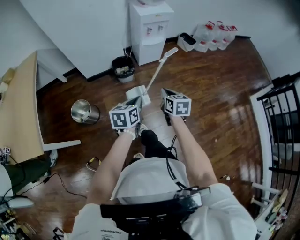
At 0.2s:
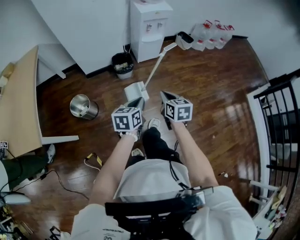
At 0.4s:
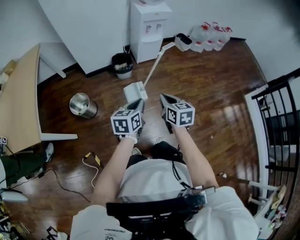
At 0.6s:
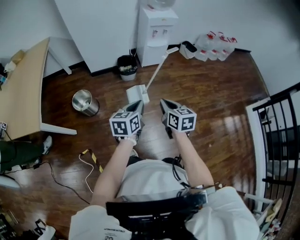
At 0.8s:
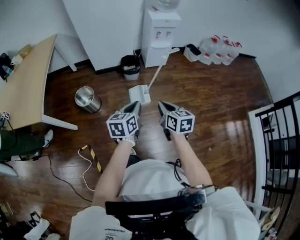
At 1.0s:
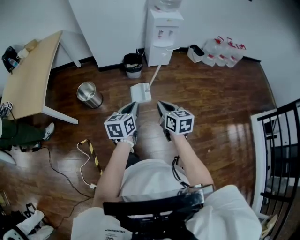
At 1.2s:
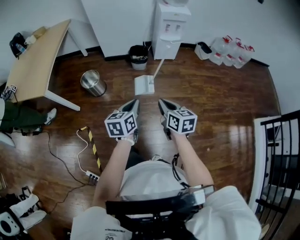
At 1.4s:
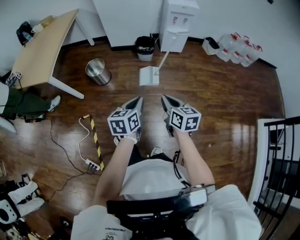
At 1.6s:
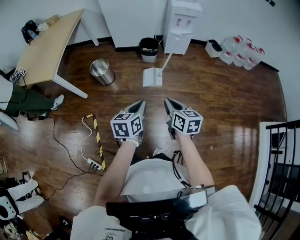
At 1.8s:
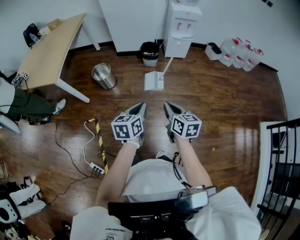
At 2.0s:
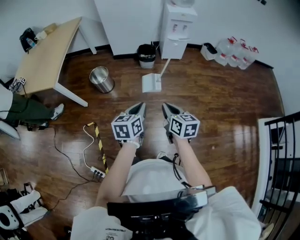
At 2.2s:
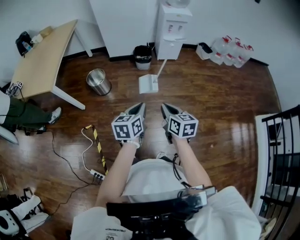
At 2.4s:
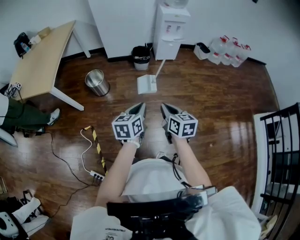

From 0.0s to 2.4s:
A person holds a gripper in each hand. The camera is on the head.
From 0.0s to 1.2s: Both grippers travel together backward, about 25 cm. The left gripper changes its angle by approximately 20 degrees. The right gripper turns by roughly 20 degrees.
From 1.2s to 2.4s: The grippers both shift backward by some 10 cm.

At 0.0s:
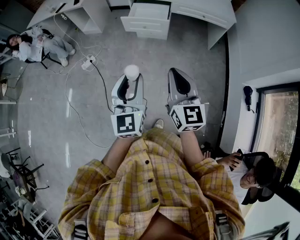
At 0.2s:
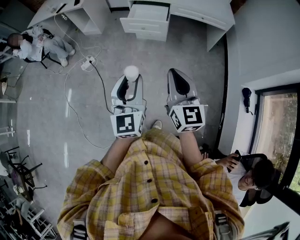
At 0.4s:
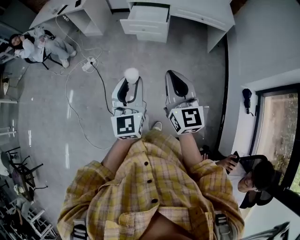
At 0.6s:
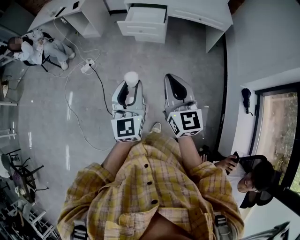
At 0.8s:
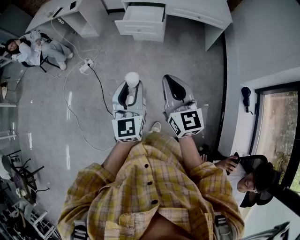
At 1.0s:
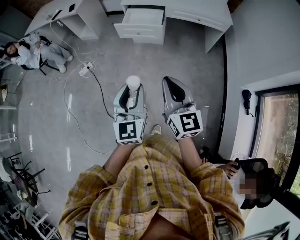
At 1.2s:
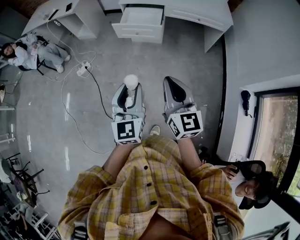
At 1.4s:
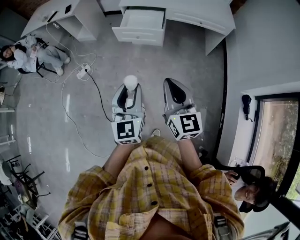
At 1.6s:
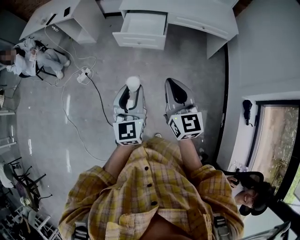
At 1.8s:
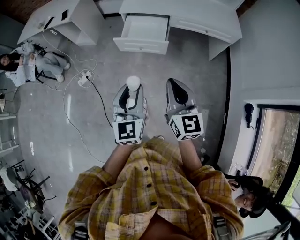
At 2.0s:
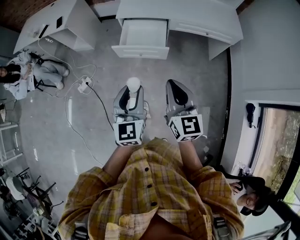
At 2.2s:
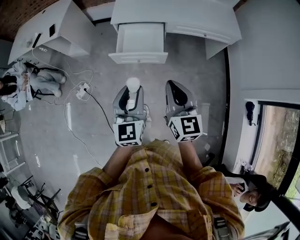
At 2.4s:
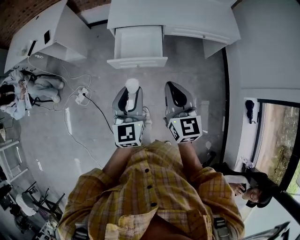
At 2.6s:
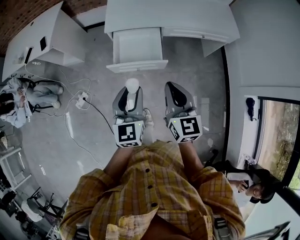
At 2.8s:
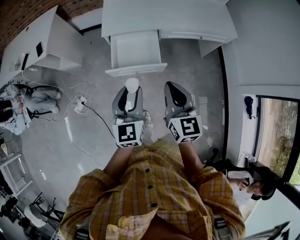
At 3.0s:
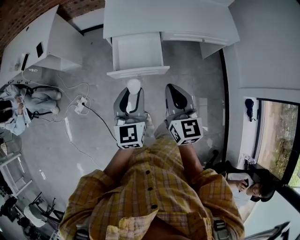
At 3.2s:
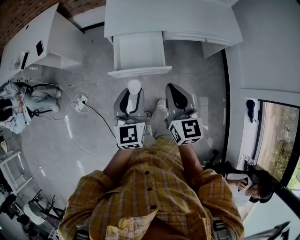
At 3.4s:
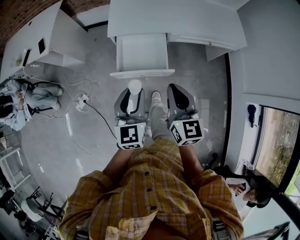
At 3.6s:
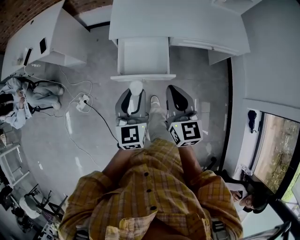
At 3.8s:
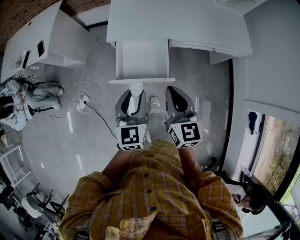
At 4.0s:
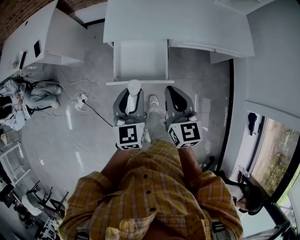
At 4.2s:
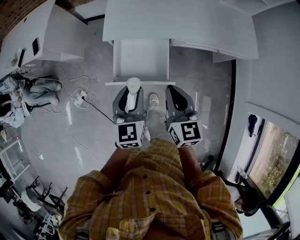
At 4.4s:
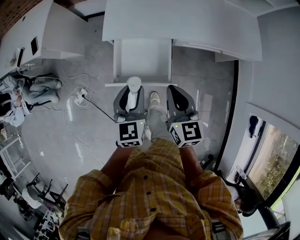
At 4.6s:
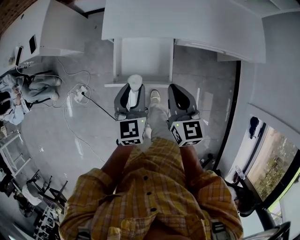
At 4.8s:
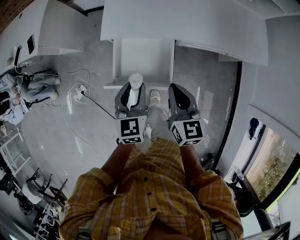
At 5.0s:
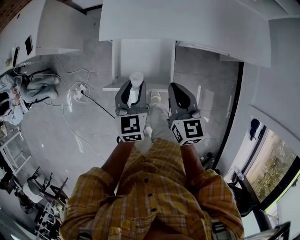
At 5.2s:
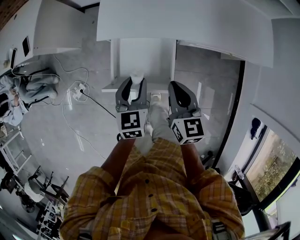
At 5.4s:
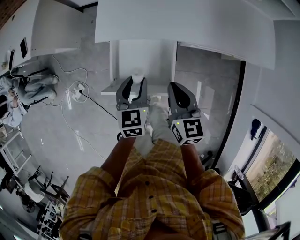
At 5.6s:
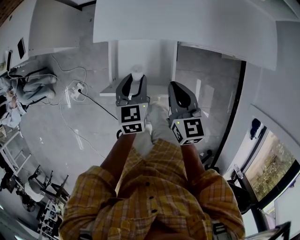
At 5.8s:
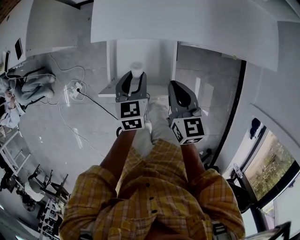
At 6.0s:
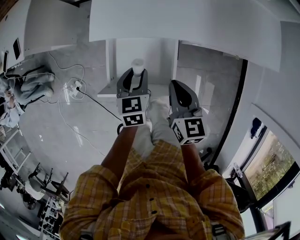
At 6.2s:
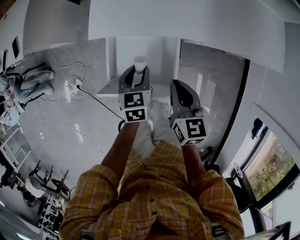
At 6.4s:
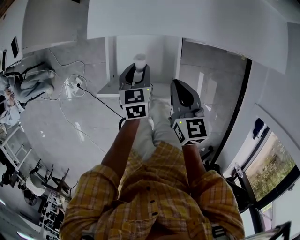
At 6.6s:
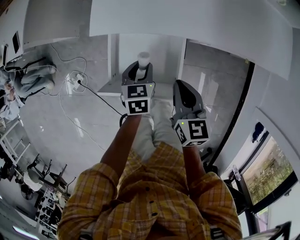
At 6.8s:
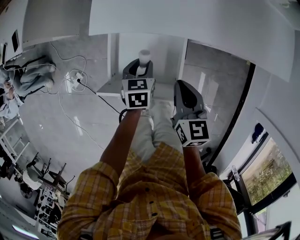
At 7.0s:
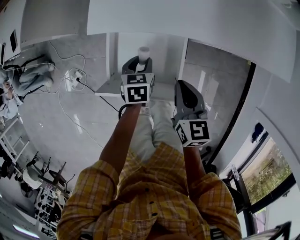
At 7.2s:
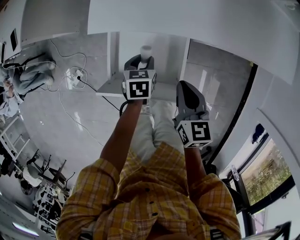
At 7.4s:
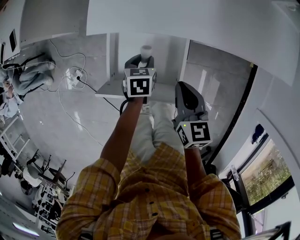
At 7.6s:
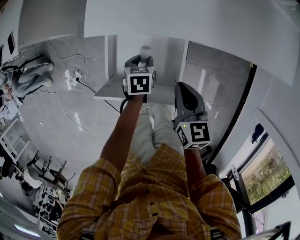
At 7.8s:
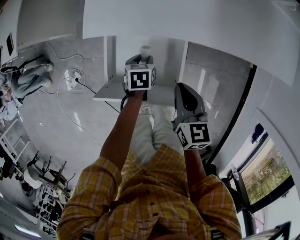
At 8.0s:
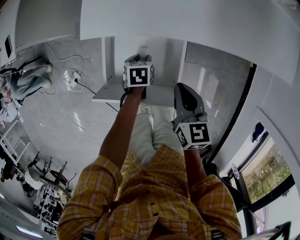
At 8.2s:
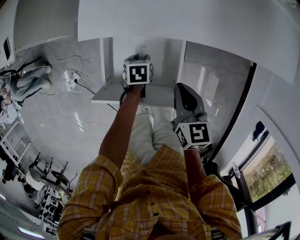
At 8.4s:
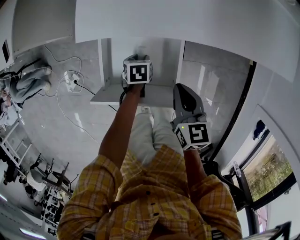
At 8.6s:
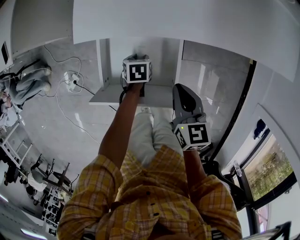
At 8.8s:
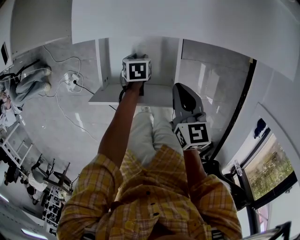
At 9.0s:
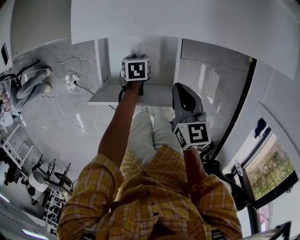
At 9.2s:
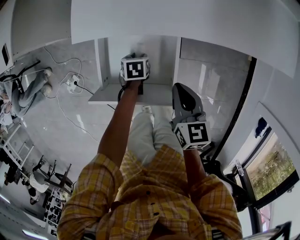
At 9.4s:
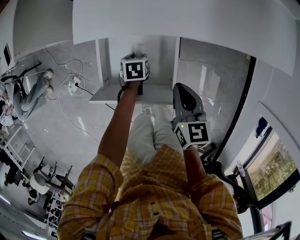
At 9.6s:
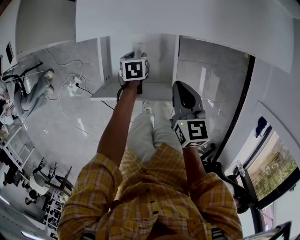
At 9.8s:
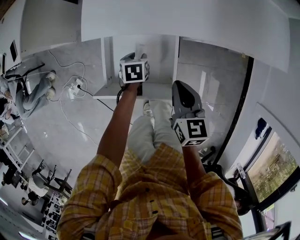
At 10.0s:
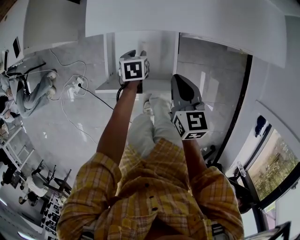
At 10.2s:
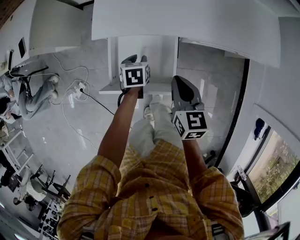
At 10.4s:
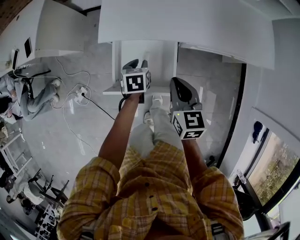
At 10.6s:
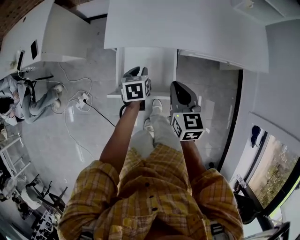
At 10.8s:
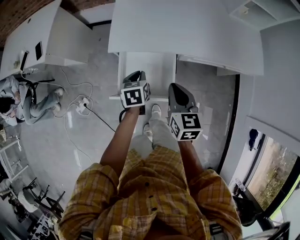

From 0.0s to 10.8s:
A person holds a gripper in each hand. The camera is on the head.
From 0.0s to 1.6s: Both grippers travel together forward, roughly 15 cm.
From 1.6s to 3.0s: Both grippers move forward, roughly 30 cm.
From 3.0s to 4.6s: Both grippers travel together forward and downward, some 20 cm.
From 4.6s to 6.2s: Both grippers move downward and forward, roughly 15 cm.
From 6.2s to 7.8s: The right gripper goes some 5 cm downward. Meanwhile the left gripper moves downward, about 15 cm, and swivels roughly 20 degrees.
From 7.8s to 9.2s: The left gripper travels downward by some 5 cm.
From 9.2s to 10.8s: The right gripper heads upward, covering approximately 15 cm, while the left gripper shifts about 25 cm upward, changes its angle by roughly 20 degrees, and closes.

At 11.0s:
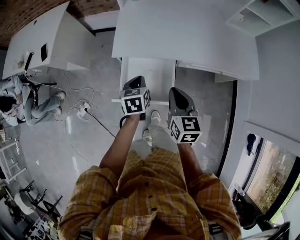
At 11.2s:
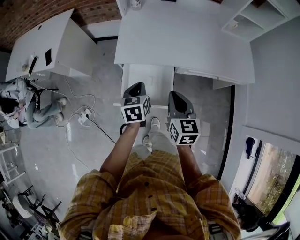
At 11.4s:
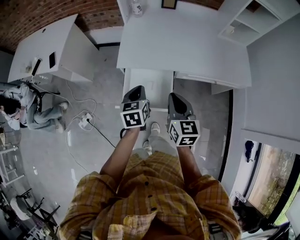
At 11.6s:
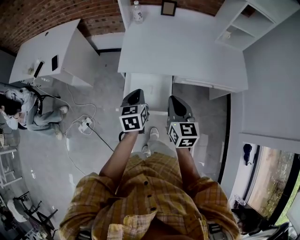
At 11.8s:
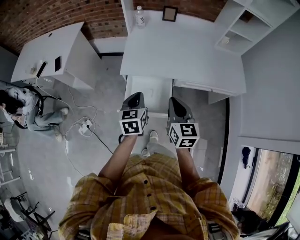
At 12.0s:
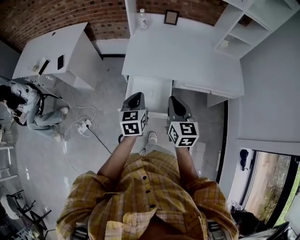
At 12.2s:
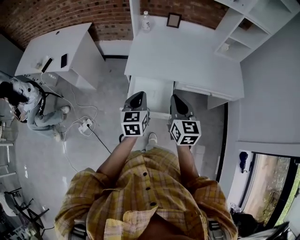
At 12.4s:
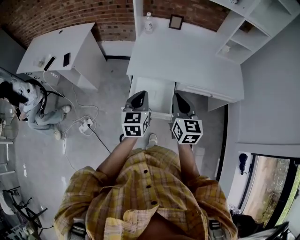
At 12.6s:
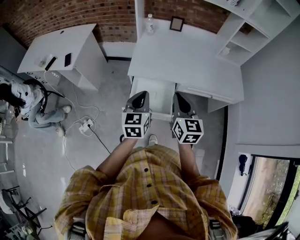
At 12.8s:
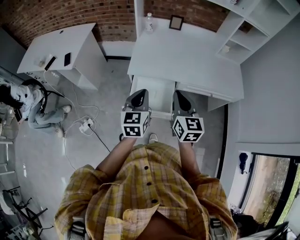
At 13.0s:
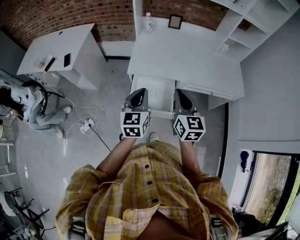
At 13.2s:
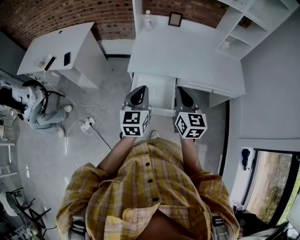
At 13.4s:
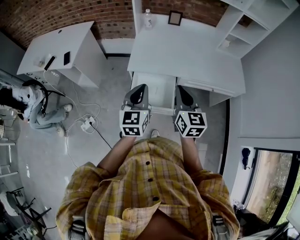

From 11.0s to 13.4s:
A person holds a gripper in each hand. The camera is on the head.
From 11.0s to 12.2s: Both grippers move upward and backward, some 15 cm. The left gripper rotates roughly 20 degrees.
From 12.2s to 13.4s: The left gripper travels upward by about 5 cm.

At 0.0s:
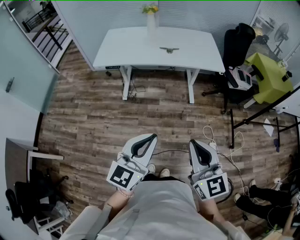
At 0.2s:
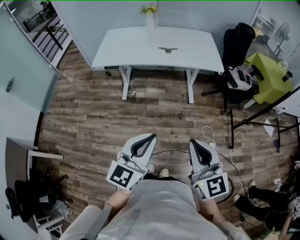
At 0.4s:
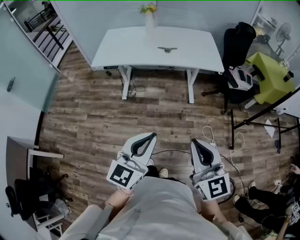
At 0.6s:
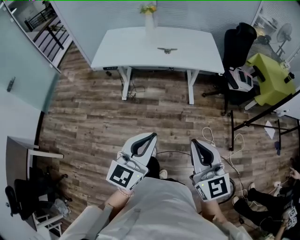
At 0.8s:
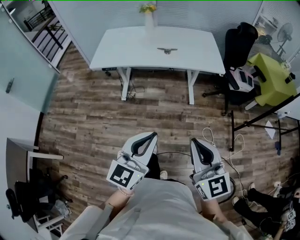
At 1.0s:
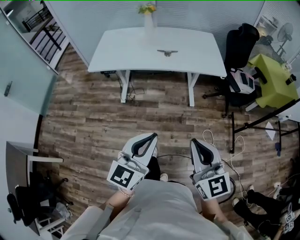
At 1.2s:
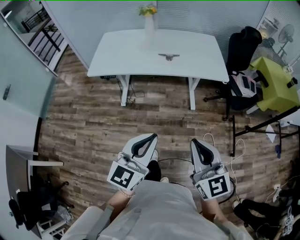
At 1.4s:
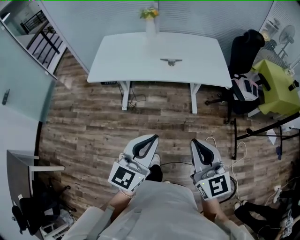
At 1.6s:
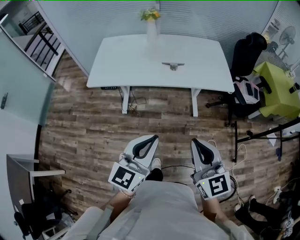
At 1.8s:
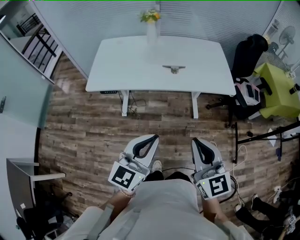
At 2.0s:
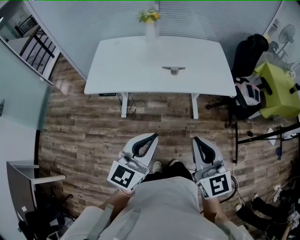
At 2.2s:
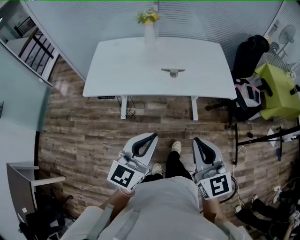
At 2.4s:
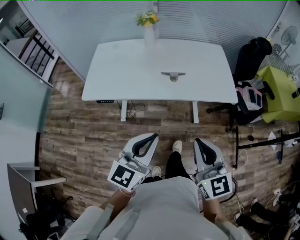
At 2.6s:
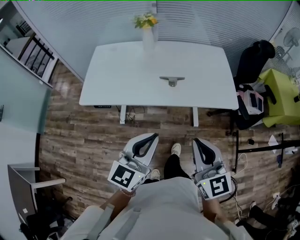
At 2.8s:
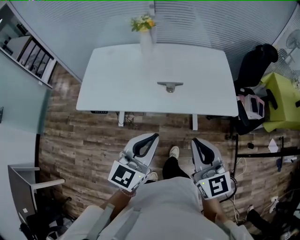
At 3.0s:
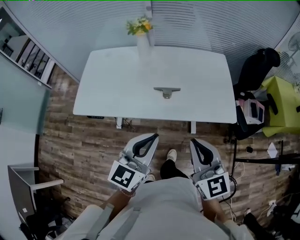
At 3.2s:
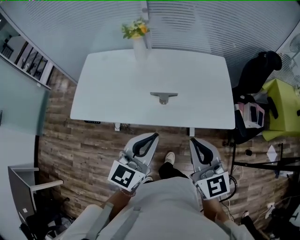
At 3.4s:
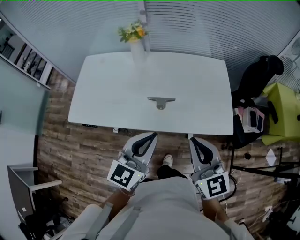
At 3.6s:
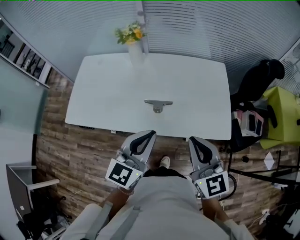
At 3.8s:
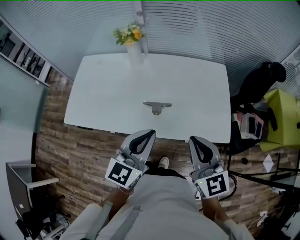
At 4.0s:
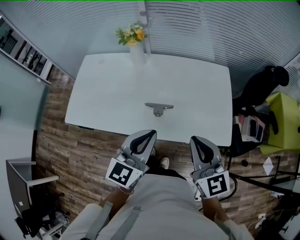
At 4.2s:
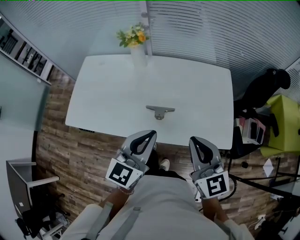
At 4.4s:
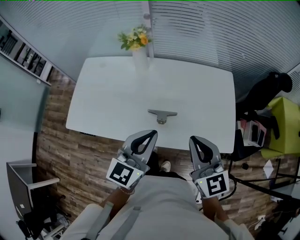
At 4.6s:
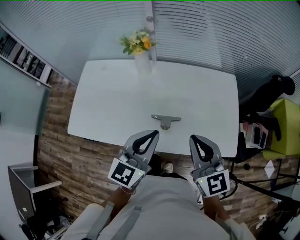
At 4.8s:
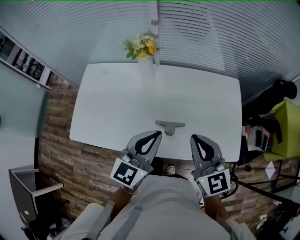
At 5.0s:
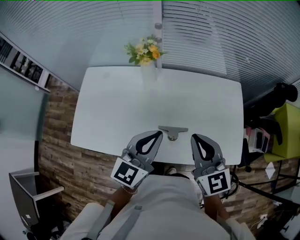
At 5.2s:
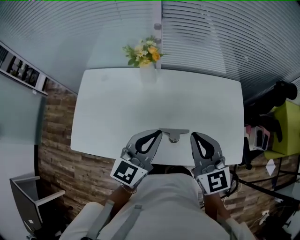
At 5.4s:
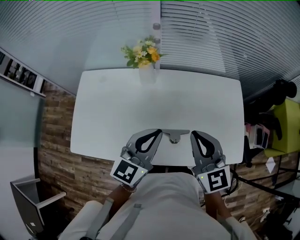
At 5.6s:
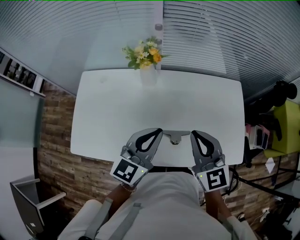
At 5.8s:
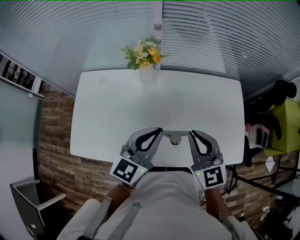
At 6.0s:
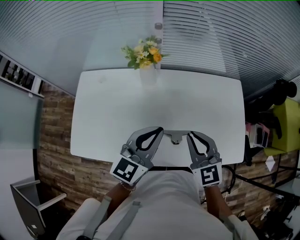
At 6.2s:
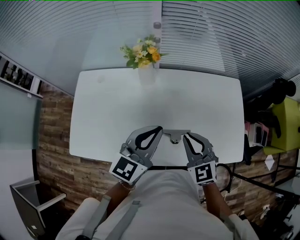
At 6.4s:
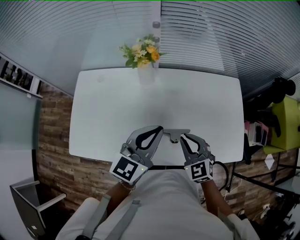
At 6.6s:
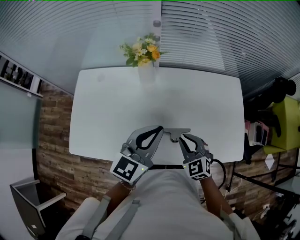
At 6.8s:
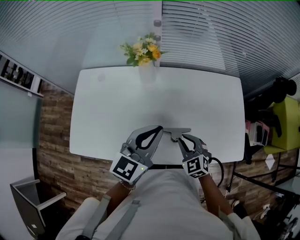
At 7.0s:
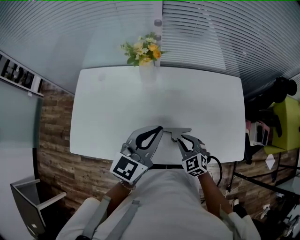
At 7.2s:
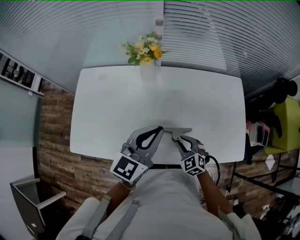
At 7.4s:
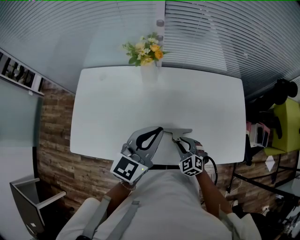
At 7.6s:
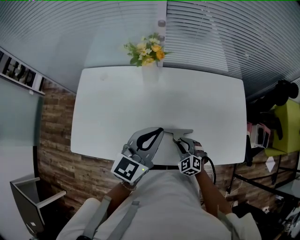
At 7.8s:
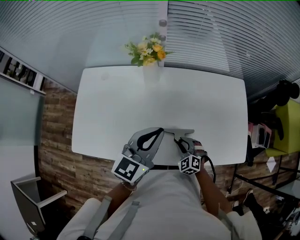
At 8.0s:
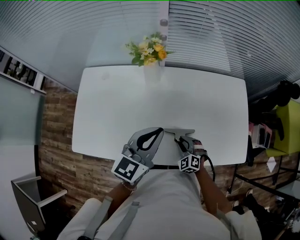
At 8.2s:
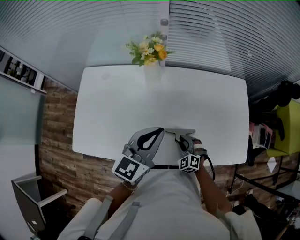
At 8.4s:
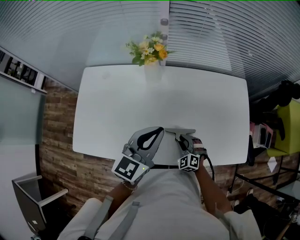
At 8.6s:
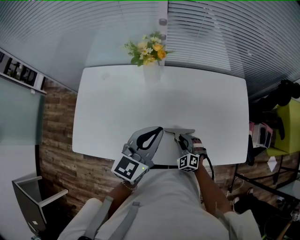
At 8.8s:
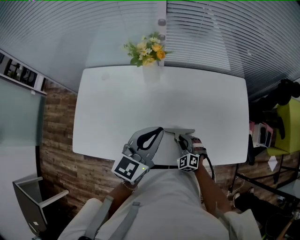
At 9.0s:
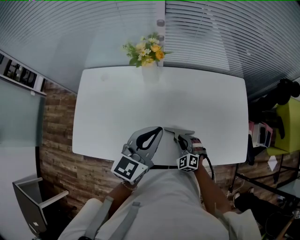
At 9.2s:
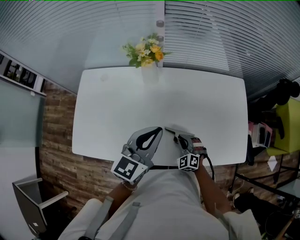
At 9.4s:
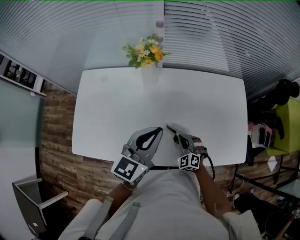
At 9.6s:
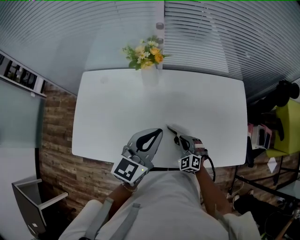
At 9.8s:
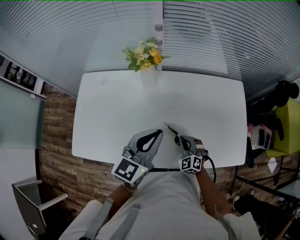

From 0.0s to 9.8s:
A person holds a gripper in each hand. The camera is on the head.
From 0.0s to 1.4s: The grippers both shift forward by some 20 cm.
From 1.4s to 2.8s: Both grippers travel together forward, some 30 cm.
From 2.8s to 4.2s: The two grippers go roughly 20 cm forward.
From 4.2s to 5.6s: Both grippers travel together forward and to the left, some 20 cm.
From 5.6s to 7.0s: The right gripper shifts roughly 25 cm downward, and turns by roughly 30 degrees.
From 7.0s to 8.4s: The right gripper travels downward by some 10 cm.
From 8.4s to 9.8s: The right gripper changes place by roughly 5 cm, and closes its fingers.
